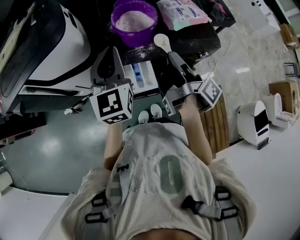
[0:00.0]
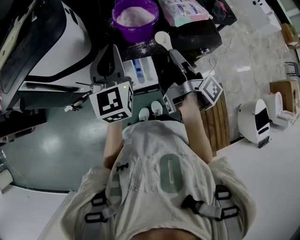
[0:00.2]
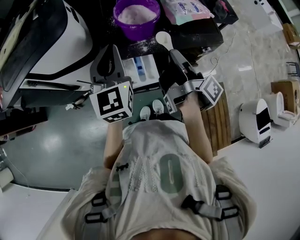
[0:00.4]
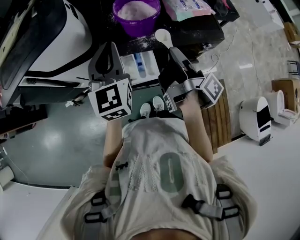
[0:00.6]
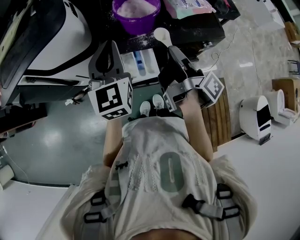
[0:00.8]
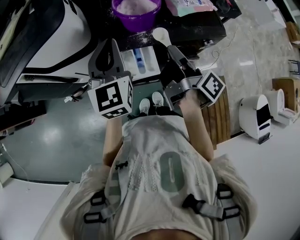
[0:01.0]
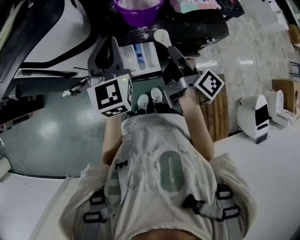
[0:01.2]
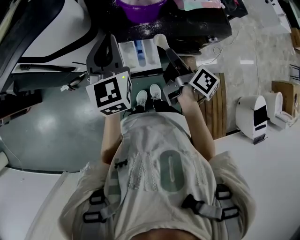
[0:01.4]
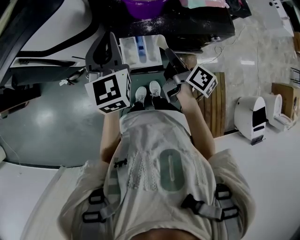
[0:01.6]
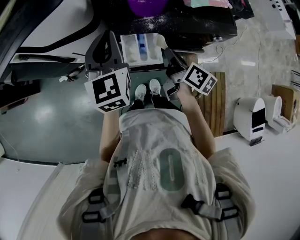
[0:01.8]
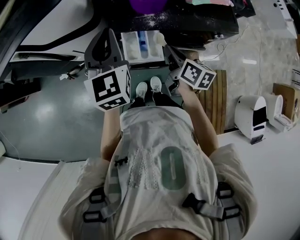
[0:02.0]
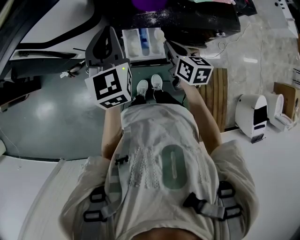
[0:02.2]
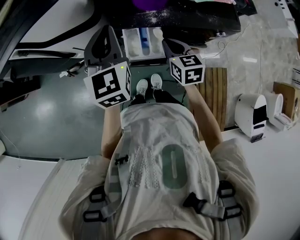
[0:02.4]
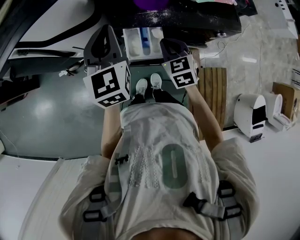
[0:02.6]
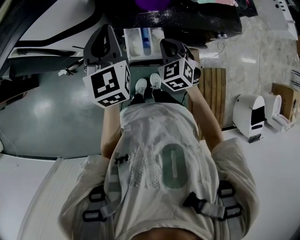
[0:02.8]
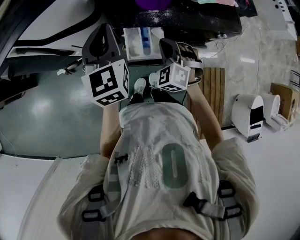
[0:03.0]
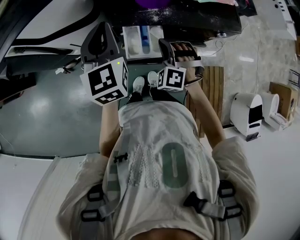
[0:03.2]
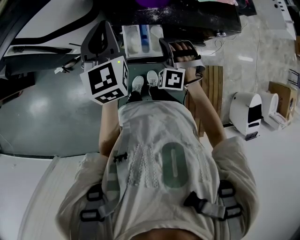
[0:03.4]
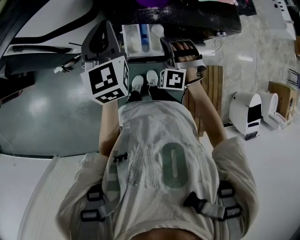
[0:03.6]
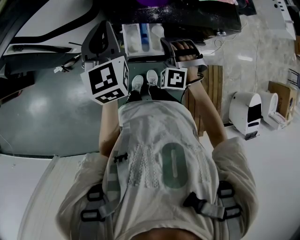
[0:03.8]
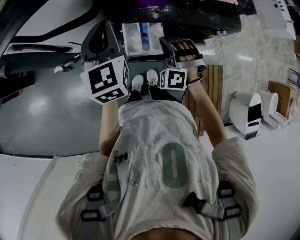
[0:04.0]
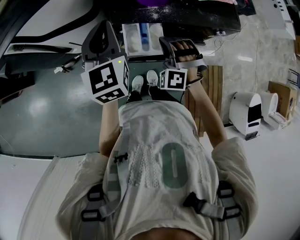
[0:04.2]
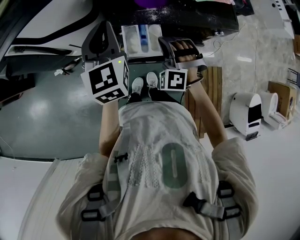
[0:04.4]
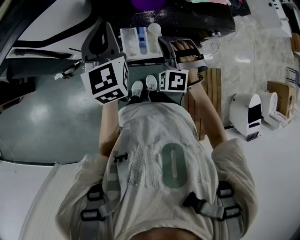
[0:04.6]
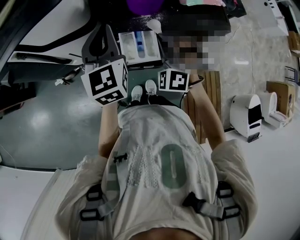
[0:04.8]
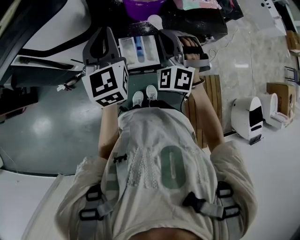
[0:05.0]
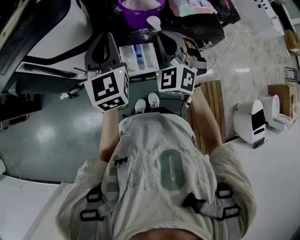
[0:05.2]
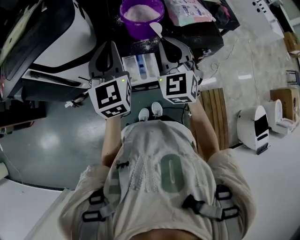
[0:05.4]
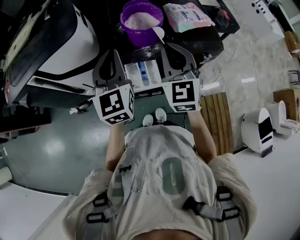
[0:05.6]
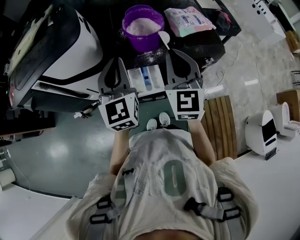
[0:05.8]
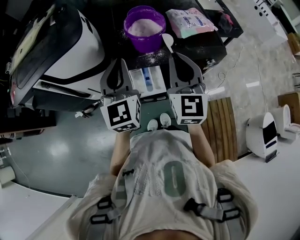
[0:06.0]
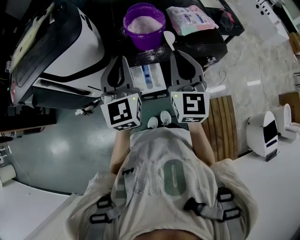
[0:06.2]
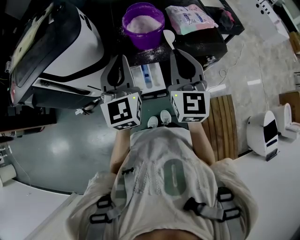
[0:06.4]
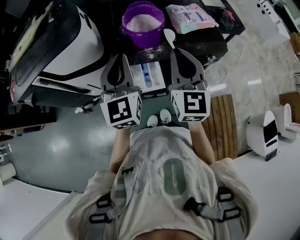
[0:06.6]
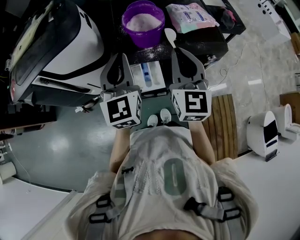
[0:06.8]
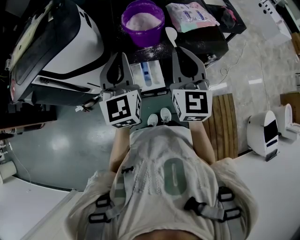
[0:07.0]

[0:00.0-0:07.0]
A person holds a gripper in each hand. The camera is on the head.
0:00.0 to 0:01.4: The right gripper moves downward, some 10 cm, and swivels some 30 degrees.
0:01.4 to 0:02.8: The right gripper travels downward and to the left by roughly 10 cm, and rolls counterclockwise, seen from behind, by some 100 degrees.
0:02.8 to 0:04.2: The right gripper rolls counterclockwise, seen from behind, by some 50 degrees.
0:04.2 to 0:05.6: The right gripper moves upward, some 20 cm, and rolls clockwise, seen from behind, by roughly 60 degrees. Meanwhile the left gripper is displaced upward by about 10 cm.
0:05.6 to 0:07.0: The grippers move only a little.

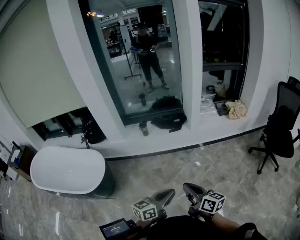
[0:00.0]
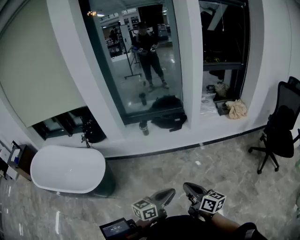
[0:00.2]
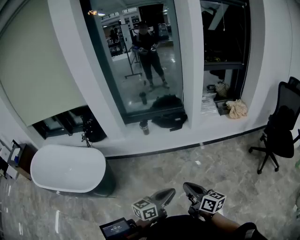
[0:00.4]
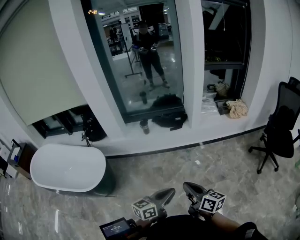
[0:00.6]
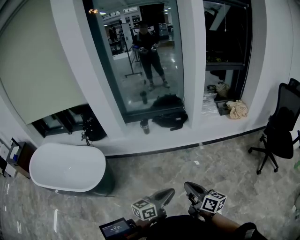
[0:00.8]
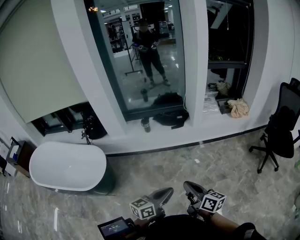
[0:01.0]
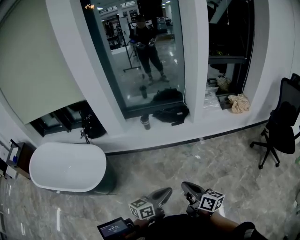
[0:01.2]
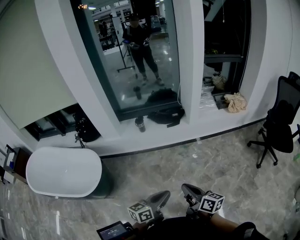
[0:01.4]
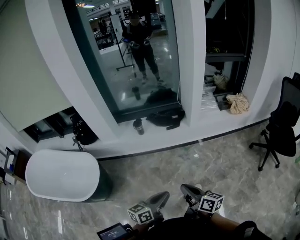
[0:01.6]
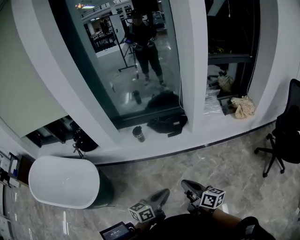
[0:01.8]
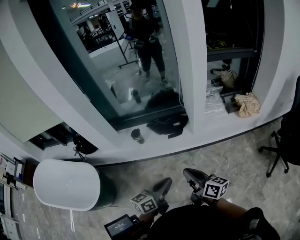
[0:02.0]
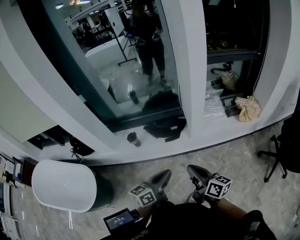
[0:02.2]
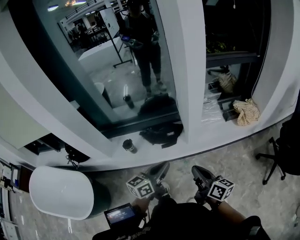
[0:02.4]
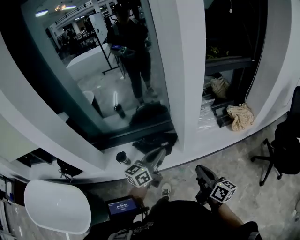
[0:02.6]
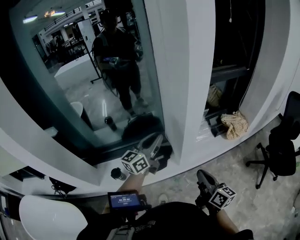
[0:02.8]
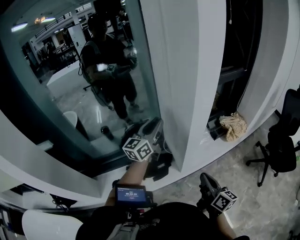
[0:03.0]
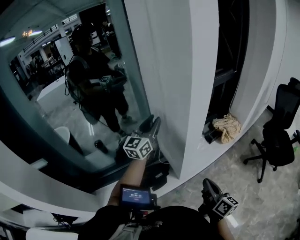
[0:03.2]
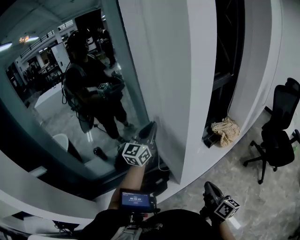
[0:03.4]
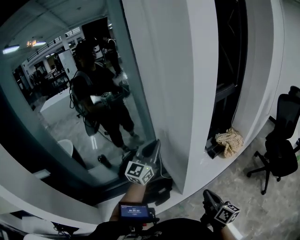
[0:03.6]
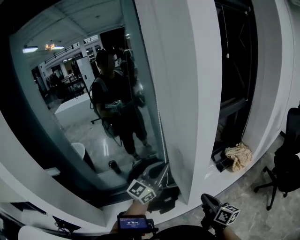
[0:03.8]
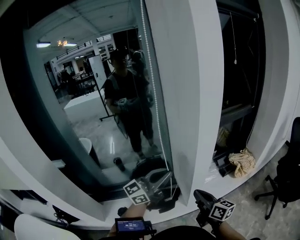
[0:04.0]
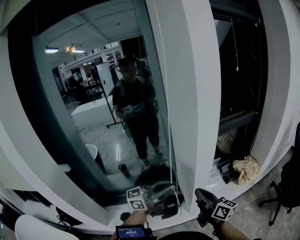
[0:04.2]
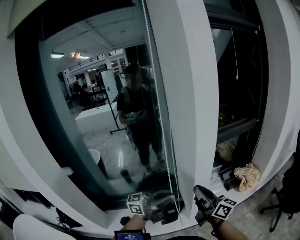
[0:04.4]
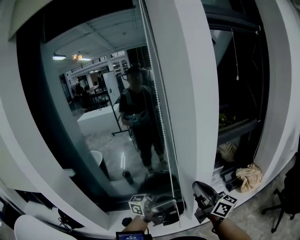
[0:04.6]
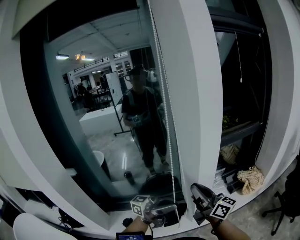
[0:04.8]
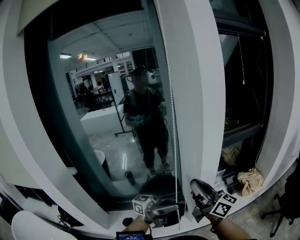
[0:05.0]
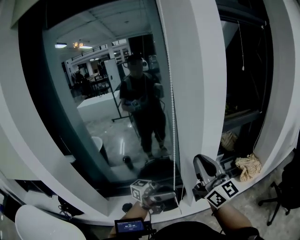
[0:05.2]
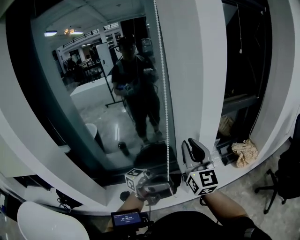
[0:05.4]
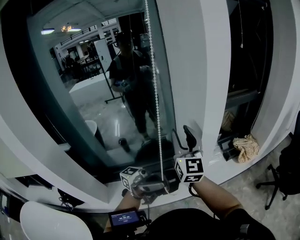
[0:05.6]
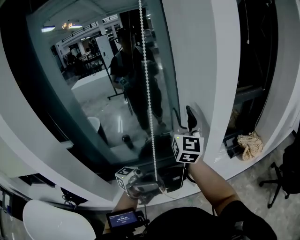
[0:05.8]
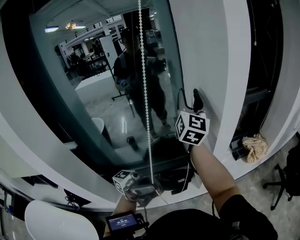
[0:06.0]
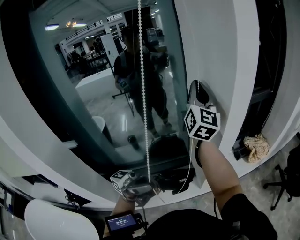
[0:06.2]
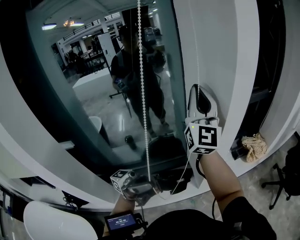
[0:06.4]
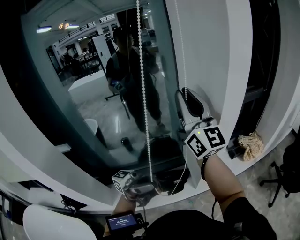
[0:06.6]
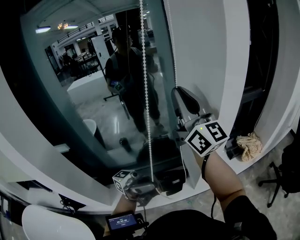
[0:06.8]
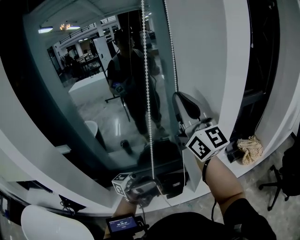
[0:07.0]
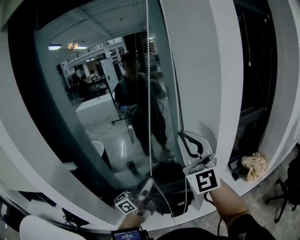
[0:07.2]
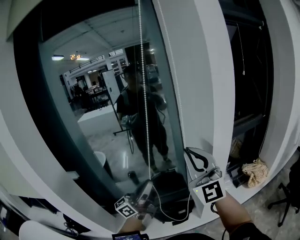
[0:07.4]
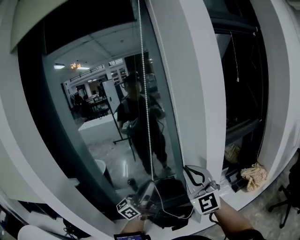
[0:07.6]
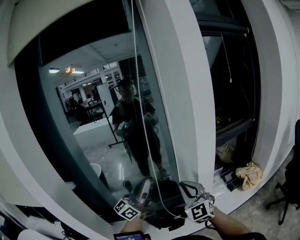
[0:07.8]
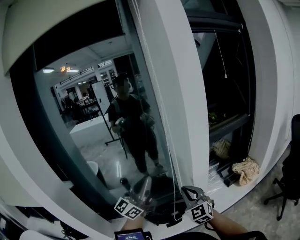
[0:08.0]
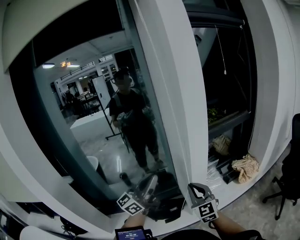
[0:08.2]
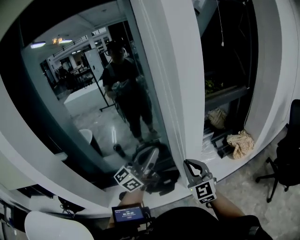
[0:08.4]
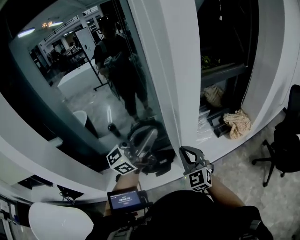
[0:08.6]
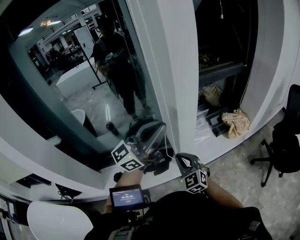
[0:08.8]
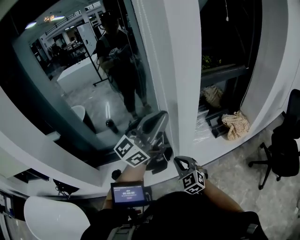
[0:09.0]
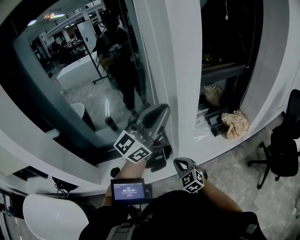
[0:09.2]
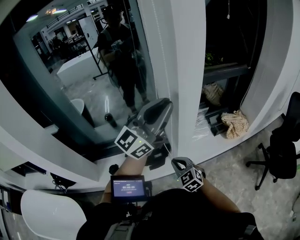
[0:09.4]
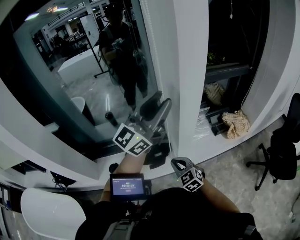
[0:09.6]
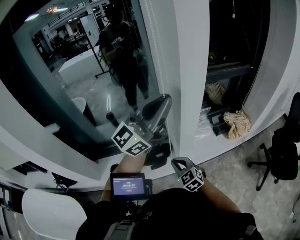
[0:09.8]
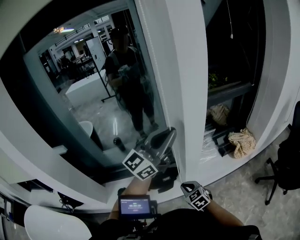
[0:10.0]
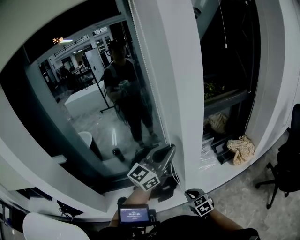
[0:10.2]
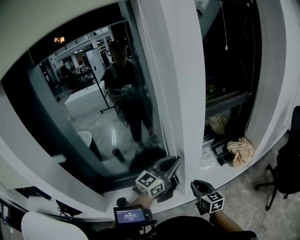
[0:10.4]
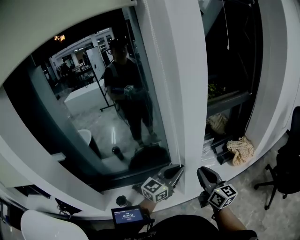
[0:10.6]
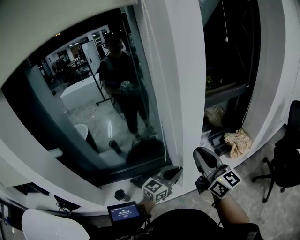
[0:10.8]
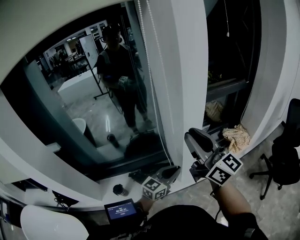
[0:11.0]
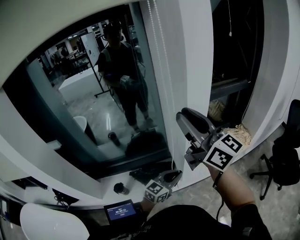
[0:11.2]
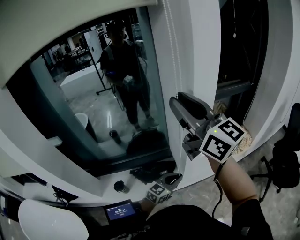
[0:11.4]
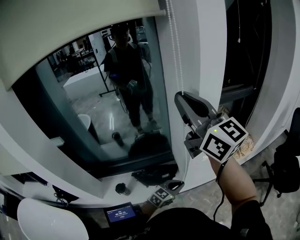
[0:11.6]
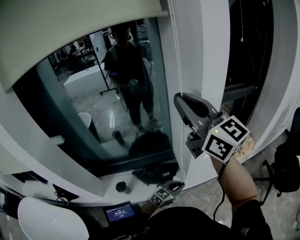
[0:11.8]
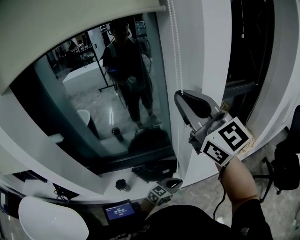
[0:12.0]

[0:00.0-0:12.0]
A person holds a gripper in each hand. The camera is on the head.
0:00.0 to 0:01.6: The right gripper shifts about 10 cm forward; the left gripper travels forward and downward by about 10 cm.
0:01.6 to 0:03.0: The pair of grippers is taken forward, some 60 cm. The left gripper swivels approximately 30 degrees; the right gripper rotates about 30 degrees.
0:03.0 to 0:04.4: The left gripper is displaced backward and to the right by about 20 cm, and changes its angle by approximately 40 degrees; the right gripper goes about 15 cm upward, forward and to the left, and changes its angle by roughly 30 degrees.
0:04.4 to 0:06.0: The left gripper ends up roughly 15 cm from where it was, and rotates about 30 degrees; the right gripper changes place by some 25 cm, changes its angle by some 50 degrees, and opens.
0:06.0 to 0:07.6: The left gripper ends up roughly 15 cm from where it was, and rotates roughly 60 degrees. The right gripper ends up some 15 cm from where it was, changes its angle by some 40 degrees, and closes its fingers.
0:07.6 to 0:09.0: The right gripper heads downward, covering some 30 cm, and tilts its fingers some 40 degrees downward, while the left gripper heads to the right, covering about 20 cm.
0:09.0 to 0:10.4: The left gripper moves downward, some 15 cm, changes its angle by approximately 20 degrees, and opens, then closes once more. Meanwhile the right gripper moves to the right, approximately 5 cm, moves roughly 10 cm downward and comes back, and rotates around the line of its fingers by approximately 40 degrees, clockwise from behind.
0:10.4 to 0:12.0: The right gripper is displaced upward by some 40 cm, and angles its fingers upward, by approximately 30 degrees. The left gripper travels downward by about 25 cm, and changes its angle by approximately 30 degrees.

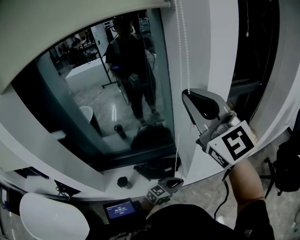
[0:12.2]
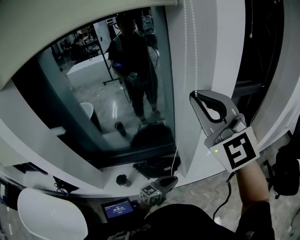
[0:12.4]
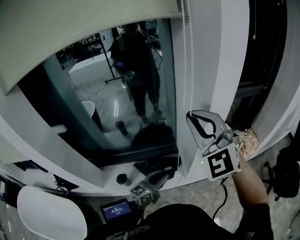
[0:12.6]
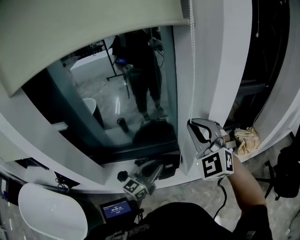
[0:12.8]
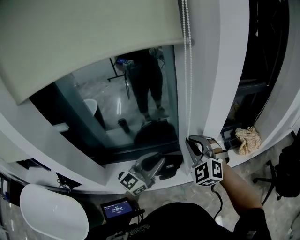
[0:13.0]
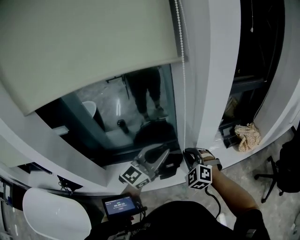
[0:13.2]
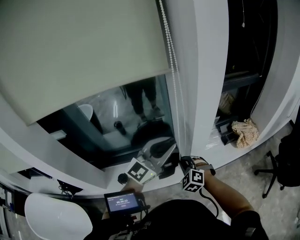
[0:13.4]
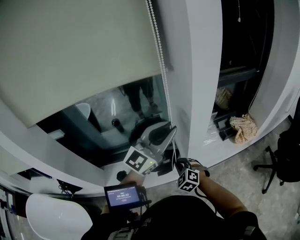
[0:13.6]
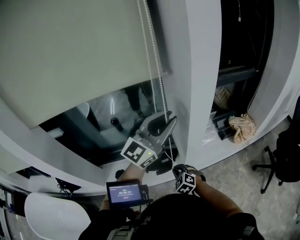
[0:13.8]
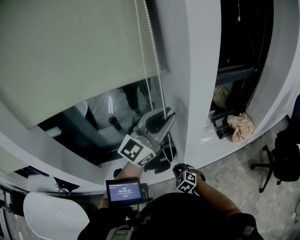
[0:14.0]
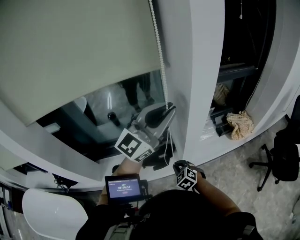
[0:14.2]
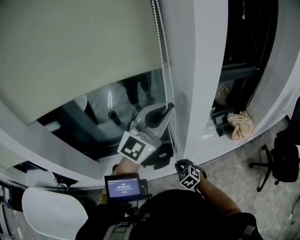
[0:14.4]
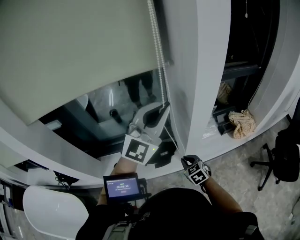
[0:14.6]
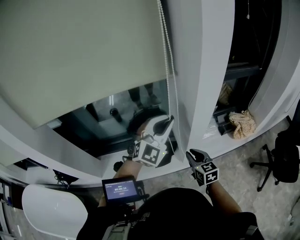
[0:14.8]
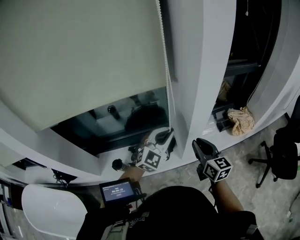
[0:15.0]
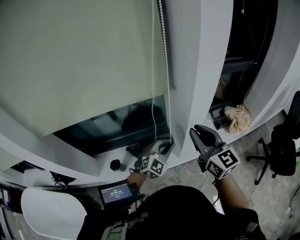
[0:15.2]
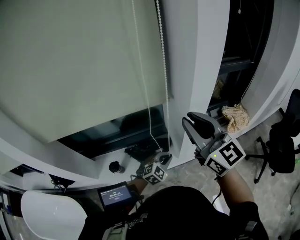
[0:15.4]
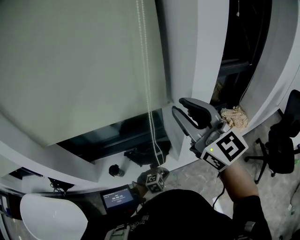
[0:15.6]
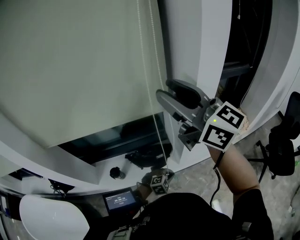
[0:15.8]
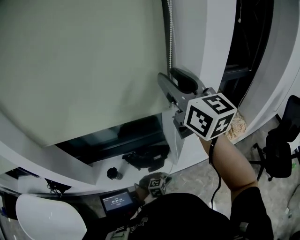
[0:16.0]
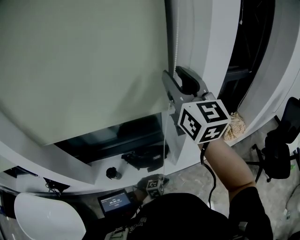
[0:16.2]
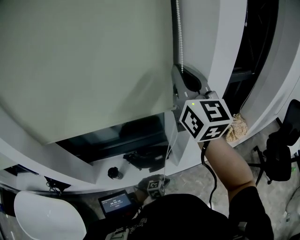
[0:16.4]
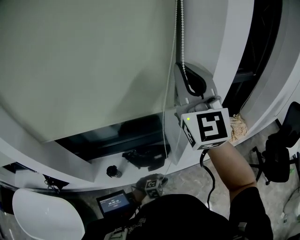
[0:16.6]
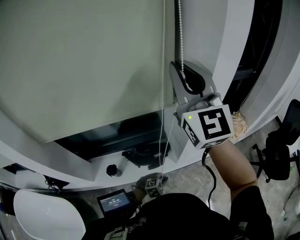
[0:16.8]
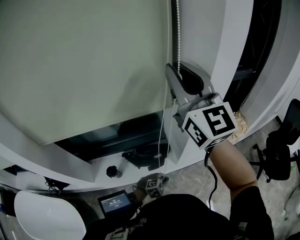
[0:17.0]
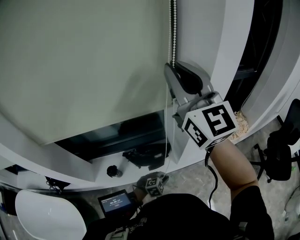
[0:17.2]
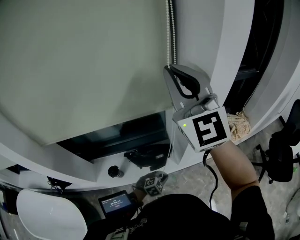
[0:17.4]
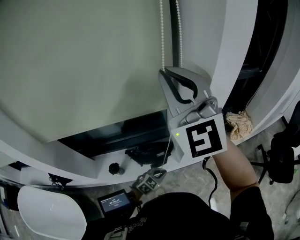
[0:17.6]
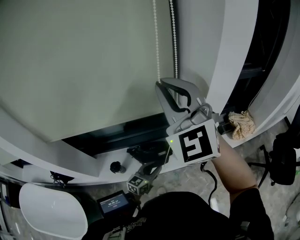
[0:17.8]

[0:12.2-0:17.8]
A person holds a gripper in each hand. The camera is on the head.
0:12.2 to 0:13.6: The left gripper shifts roughly 35 cm upward, and tilts its fingers approximately 30 degrees upward. The right gripper shifts approximately 50 cm downward, and tilts its fingers about 60 degrees downward.
0:13.6 to 0:15.0: The left gripper heads downward, covering about 15 cm, and rotates about 30 degrees, while the right gripper is displaced upward and to the right by about 15 cm, and twists roughly 60 degrees clockwise, seen from behind.
0:15.0 to 0:16.4: The right gripper is displaced upward by roughly 35 cm, rotates some 30 degrees, and opens, then closes again. Meanwhile the left gripper shifts roughly 35 cm downward and backward, and tips its fingers downward by about 40 degrees.
0:16.4 to 0:17.8: The right gripper ends up approximately 5 cm from where it was, and swivels about 40 degrees, while the left gripper moves upward, to the left and forward, some 15 cm, tips its fingers upward by about 40 degrees, and opens up.
